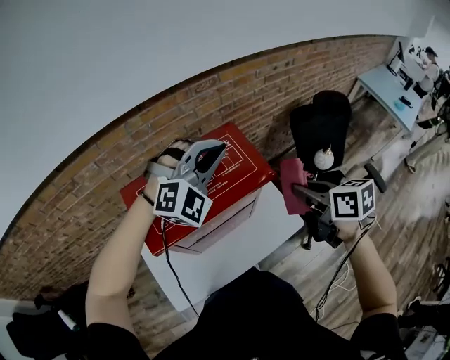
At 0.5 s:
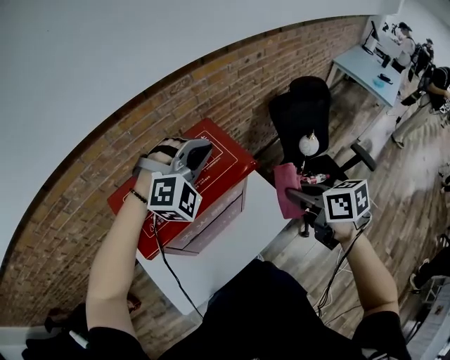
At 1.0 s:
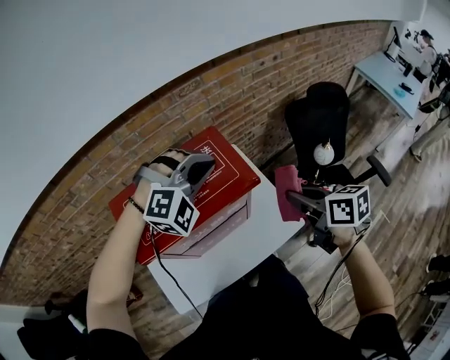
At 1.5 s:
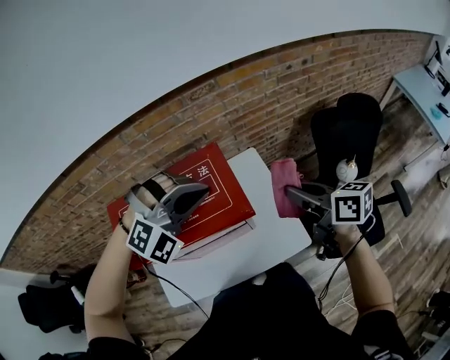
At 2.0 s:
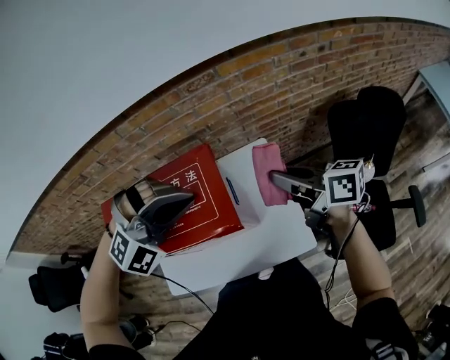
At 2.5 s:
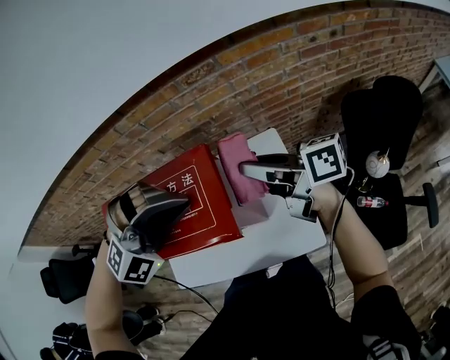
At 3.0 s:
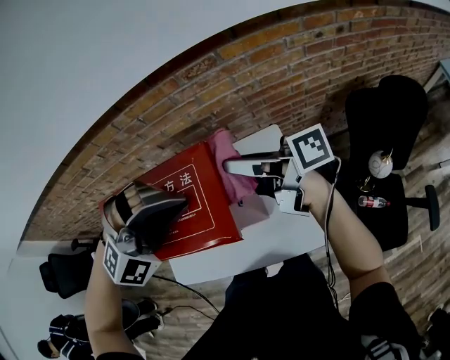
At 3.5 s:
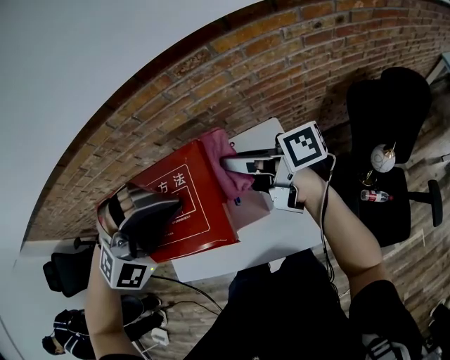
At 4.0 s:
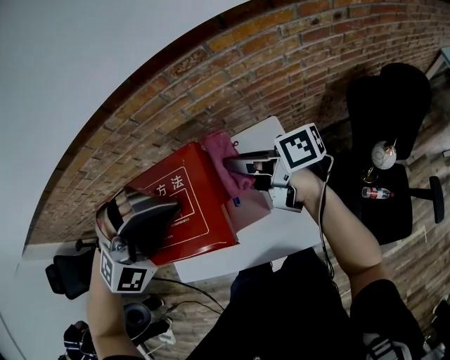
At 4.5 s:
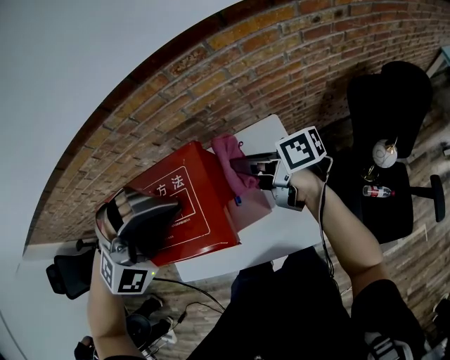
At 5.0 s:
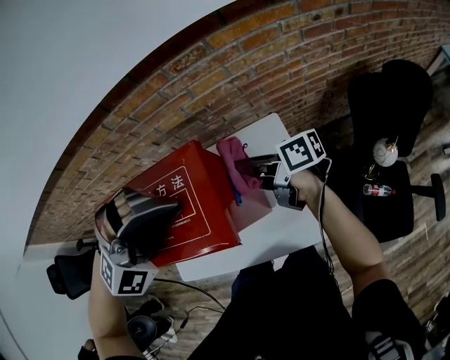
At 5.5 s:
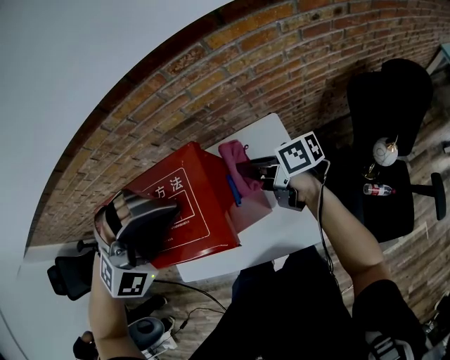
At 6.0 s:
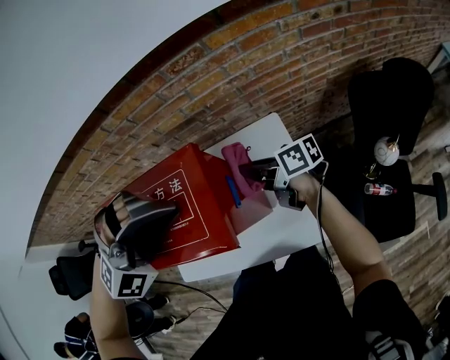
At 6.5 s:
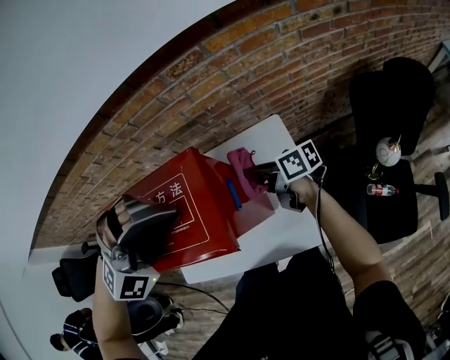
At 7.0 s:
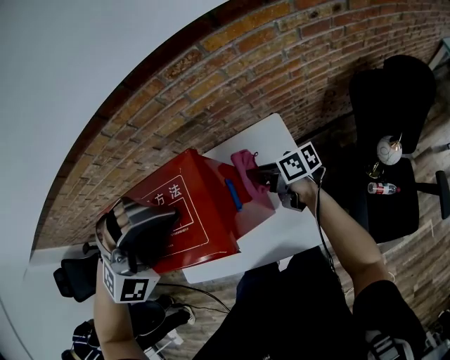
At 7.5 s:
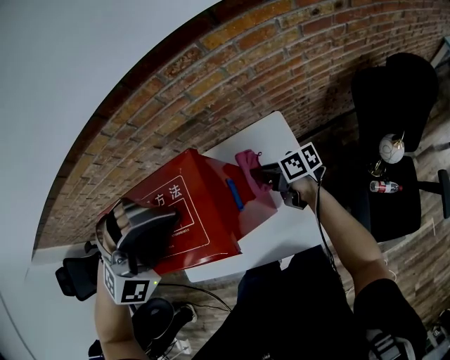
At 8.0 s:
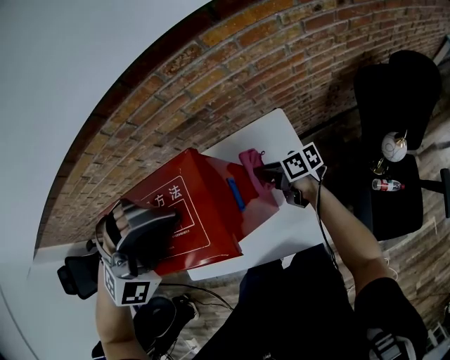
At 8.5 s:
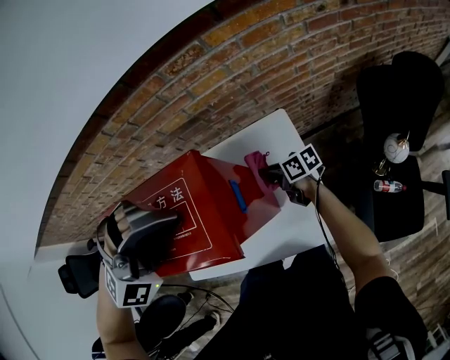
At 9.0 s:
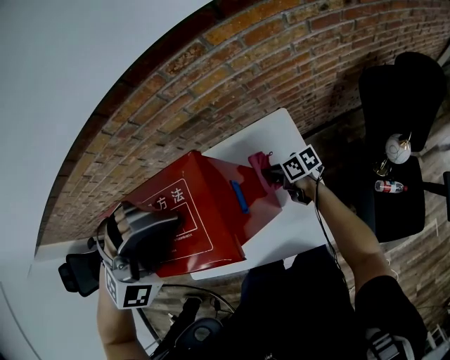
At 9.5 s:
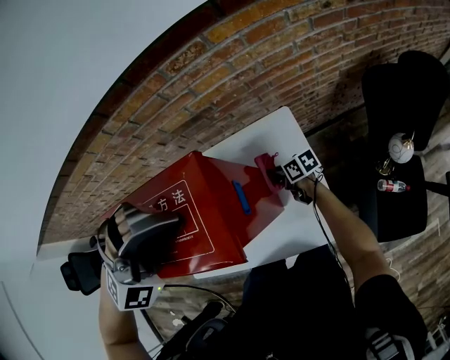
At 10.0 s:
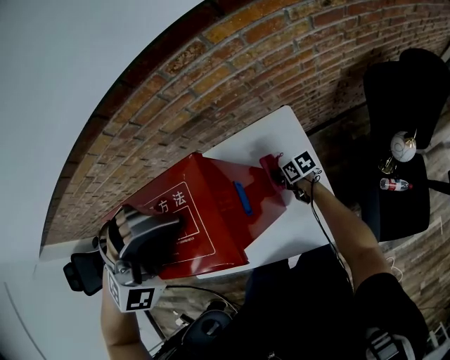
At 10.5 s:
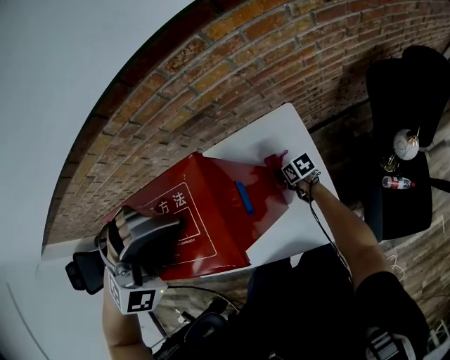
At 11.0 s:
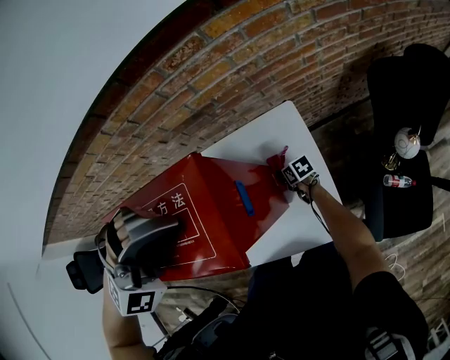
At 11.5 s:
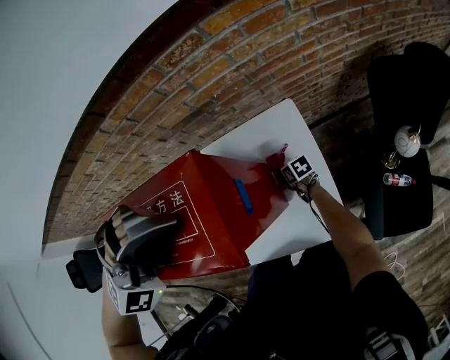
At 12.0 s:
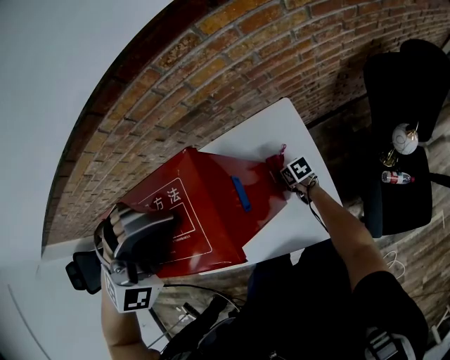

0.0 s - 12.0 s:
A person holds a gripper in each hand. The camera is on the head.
0.0 s - 2.0 s: The right gripper moves forward, about 15 cm, and rotates approximately 40 degrees.
2.0 s - 4.0 s: The right gripper moves to the left and forward, about 10 cm, and rotates some 30 degrees.
4.0 s - 6.0 s: The right gripper is displaced downward by some 10 cm.
6.0 s - 8.0 s: The right gripper heads downward, covering about 10 cm.
8.0 s - 10.0 s: The right gripper goes approximately 15 cm downward, and rotates about 20 degrees.
10.0 s - 12.0 s: The right gripper is displaced downward by roughly 5 cm.

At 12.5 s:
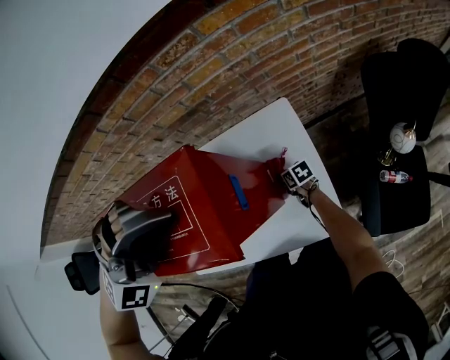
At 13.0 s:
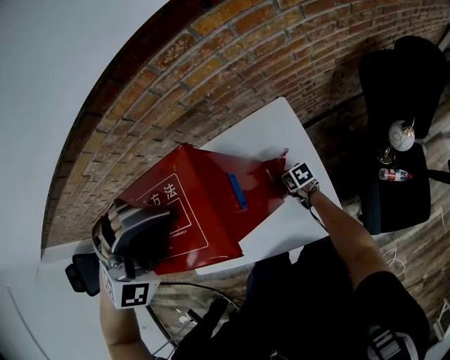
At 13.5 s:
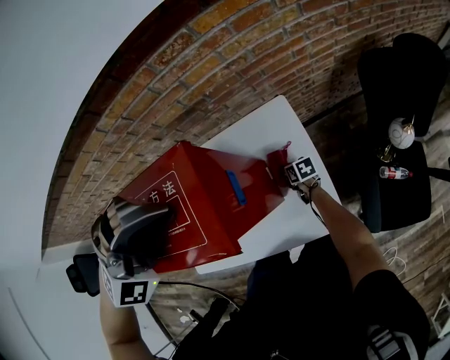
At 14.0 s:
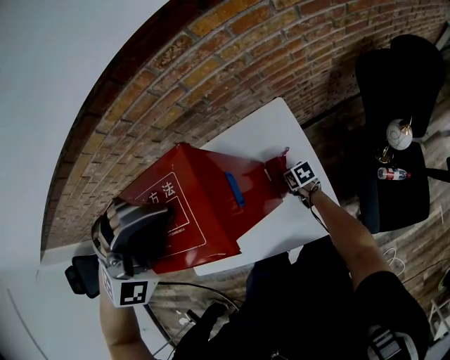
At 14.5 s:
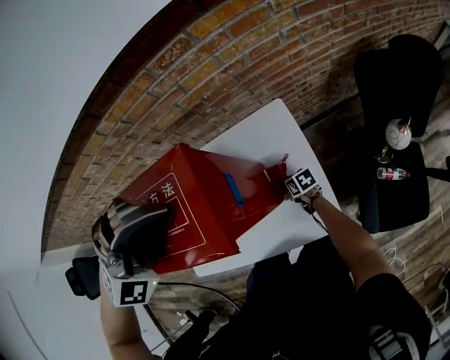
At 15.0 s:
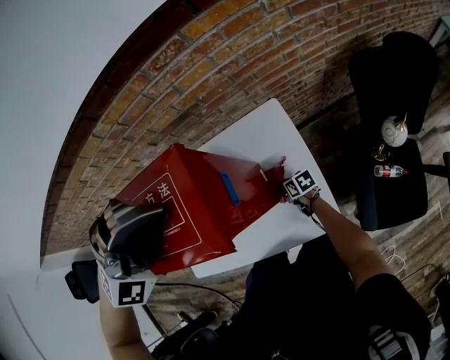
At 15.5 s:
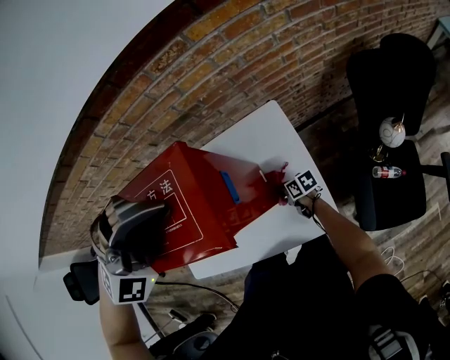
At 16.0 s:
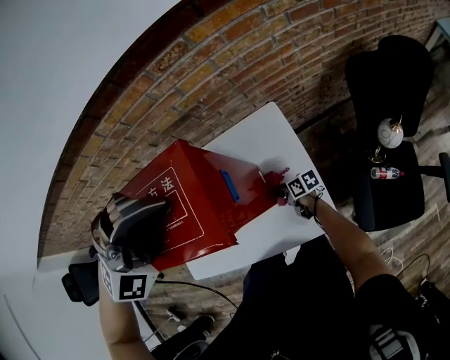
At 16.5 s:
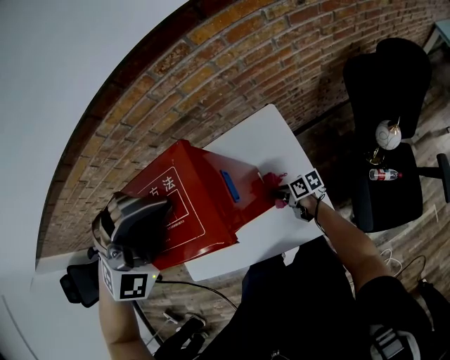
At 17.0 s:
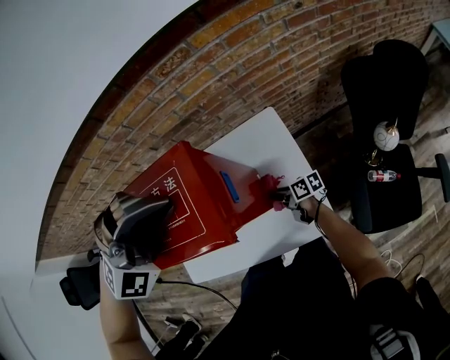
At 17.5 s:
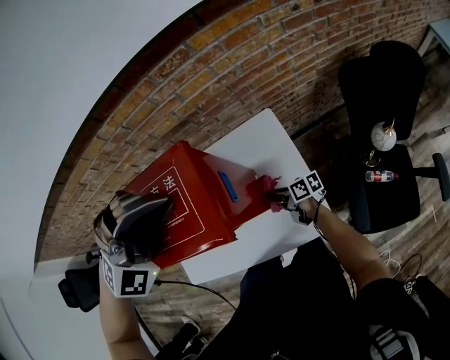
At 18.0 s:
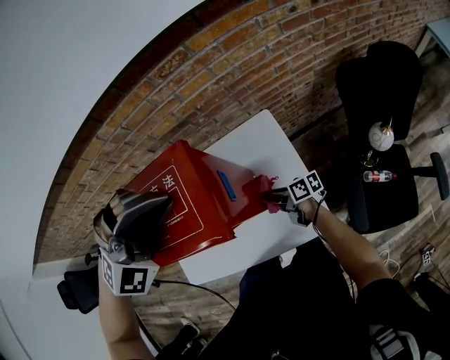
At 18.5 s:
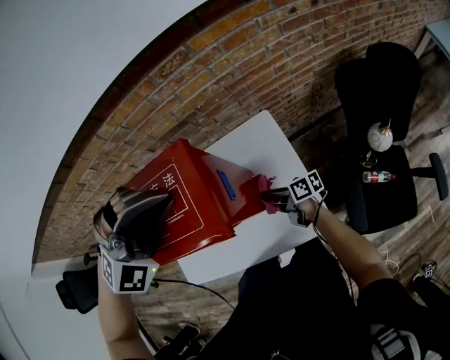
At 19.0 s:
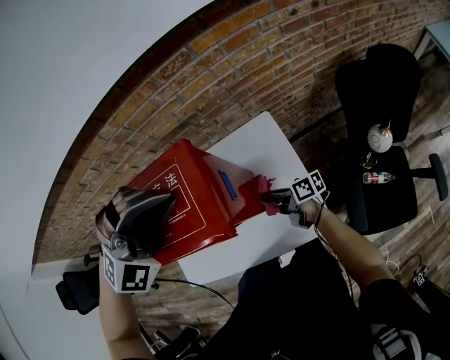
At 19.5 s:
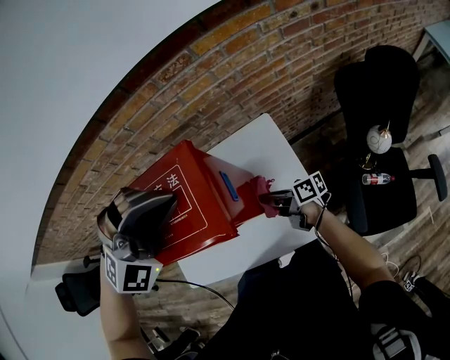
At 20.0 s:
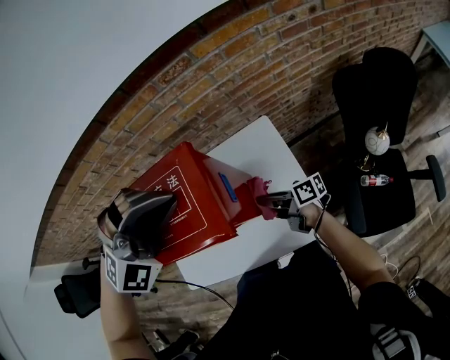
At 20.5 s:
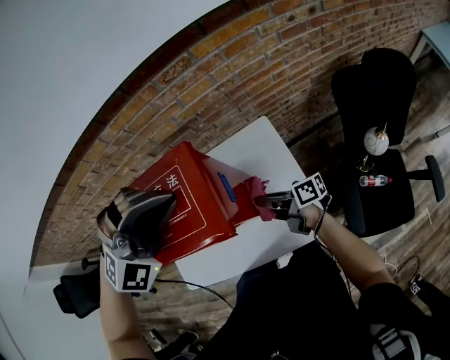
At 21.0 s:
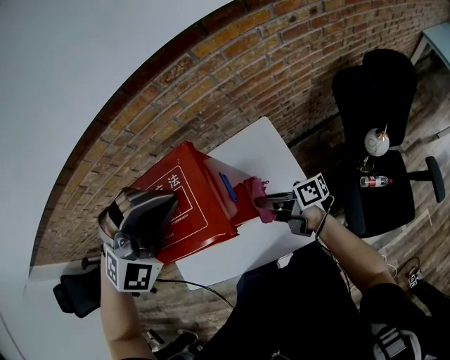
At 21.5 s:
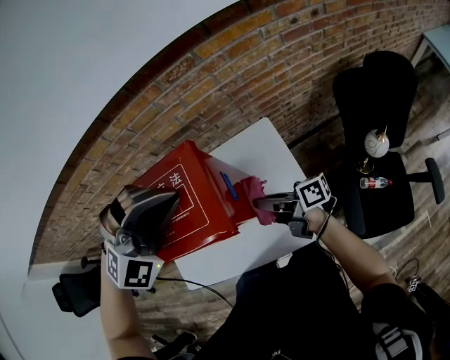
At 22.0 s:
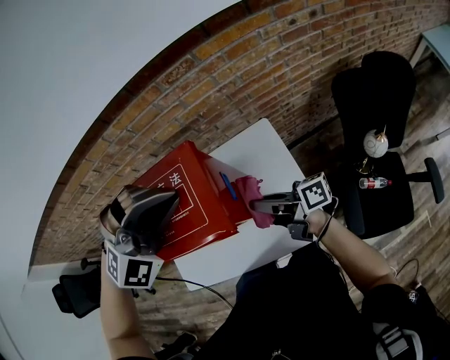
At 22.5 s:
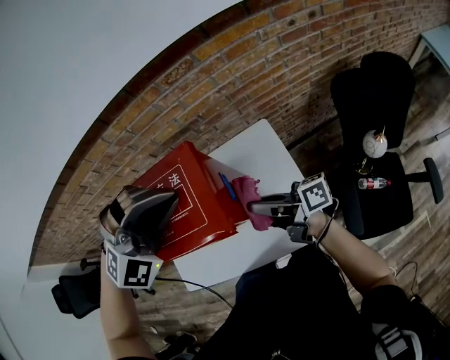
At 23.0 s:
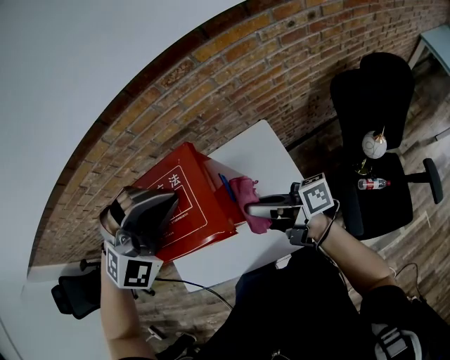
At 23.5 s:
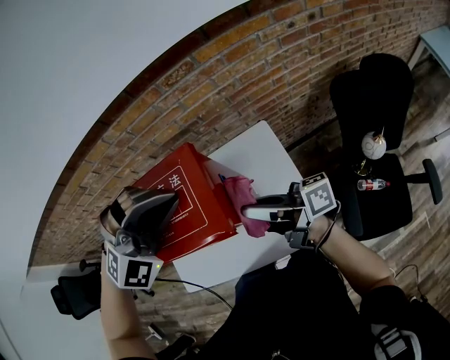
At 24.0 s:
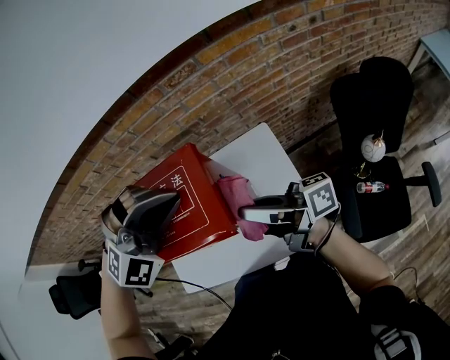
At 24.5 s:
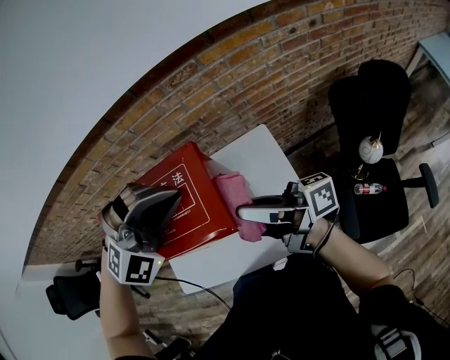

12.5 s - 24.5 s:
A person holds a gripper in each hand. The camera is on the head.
12.5 s - 14.5 s: The grippers make only small movements.
14.5 s - 16.5 s: The right gripper shifts approximately 5 cm upward, and changes its angle by some 20 degrees.
16.5 s - 18.5 s: The right gripper heads upward, covering some 10 cm.
18.5 s - 20.5 s: The right gripper moves upward, some 10 cm.
20.5 s - 22.5 s: The right gripper is displaced upward by approximately 10 cm.
22.5 s - 24.5 s: The right gripper is displaced upward by some 15 cm.

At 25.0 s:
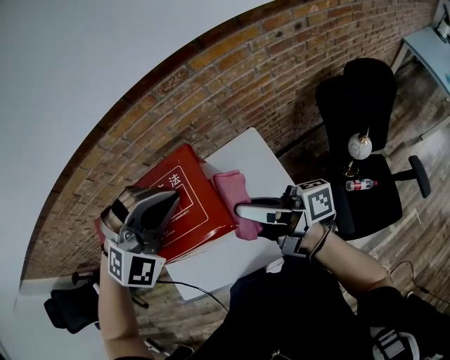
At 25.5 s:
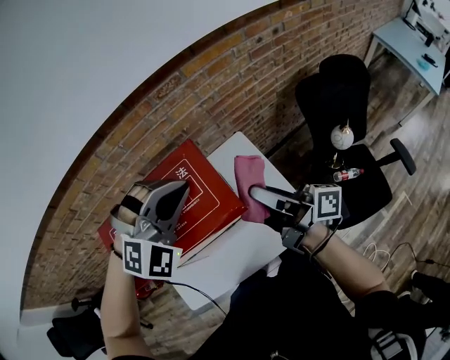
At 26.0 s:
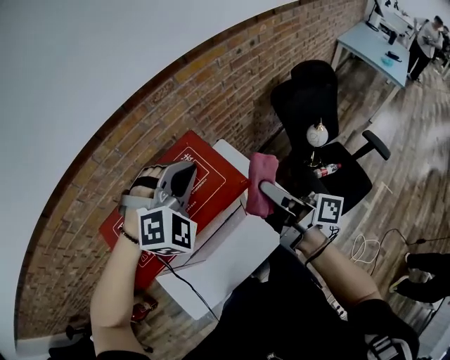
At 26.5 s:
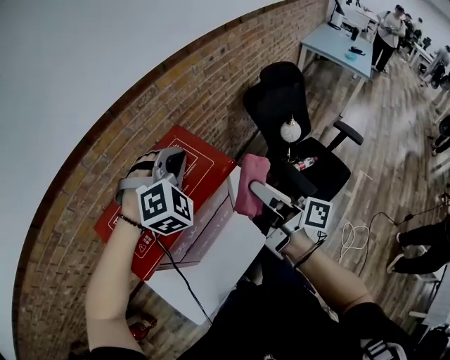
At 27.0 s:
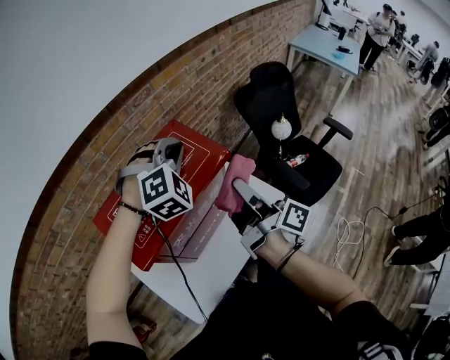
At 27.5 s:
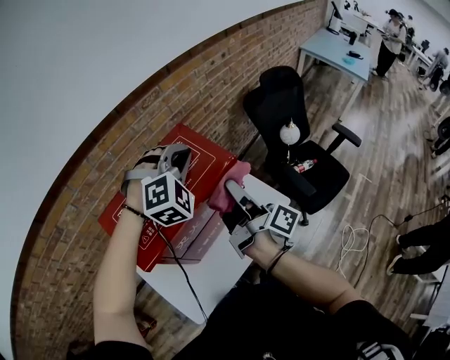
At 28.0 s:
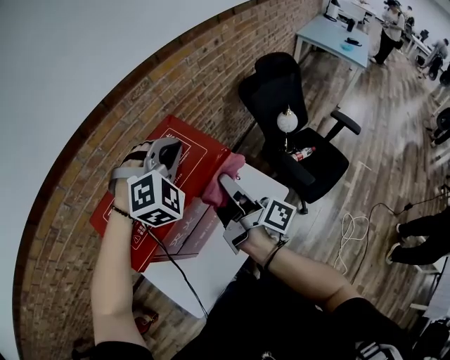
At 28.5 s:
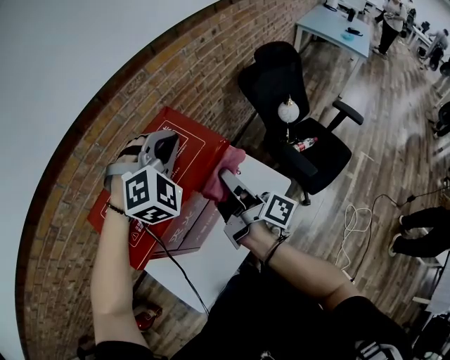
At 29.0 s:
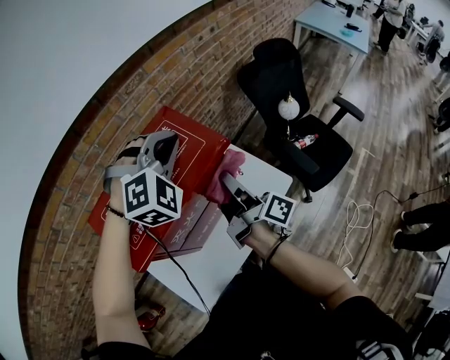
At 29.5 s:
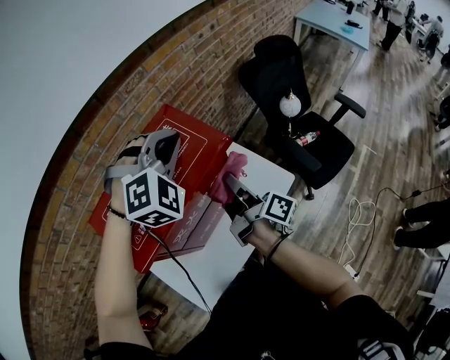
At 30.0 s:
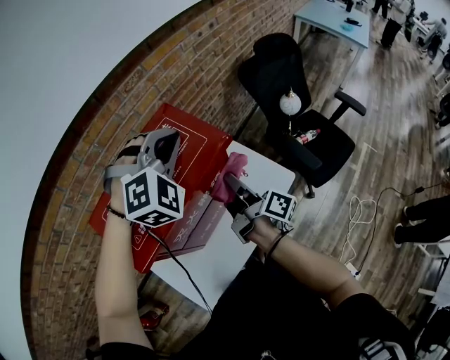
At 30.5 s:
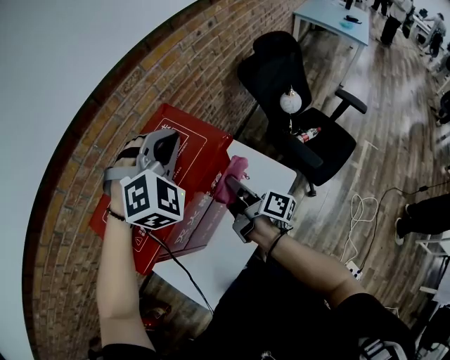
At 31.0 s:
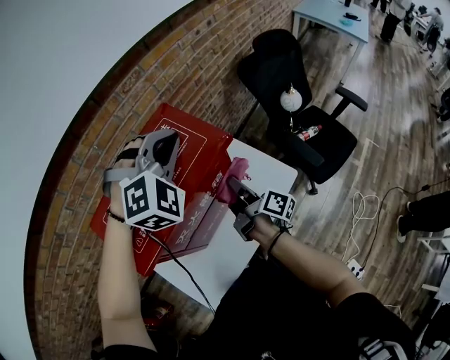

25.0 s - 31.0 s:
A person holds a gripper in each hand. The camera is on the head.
25.0 s - 27.0 s: The right gripper ends up some 10 cm from where it was, and rotates some 70 degrees.
27.0 s - 29.0 s: The right gripper shifts roughly 5 cm downward.
29.0 s - 31.0 s: The right gripper shifts about 10 cm downward.
